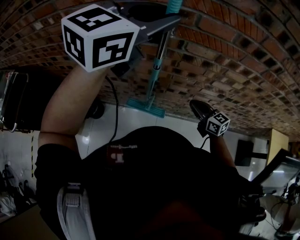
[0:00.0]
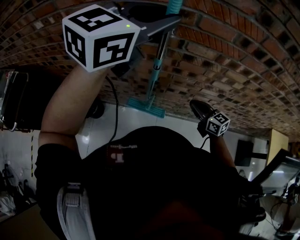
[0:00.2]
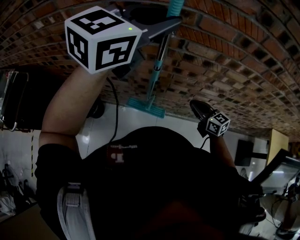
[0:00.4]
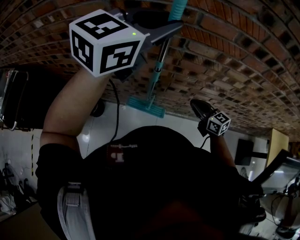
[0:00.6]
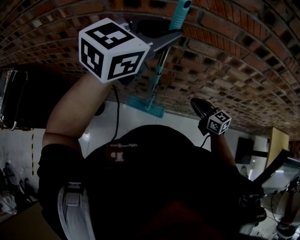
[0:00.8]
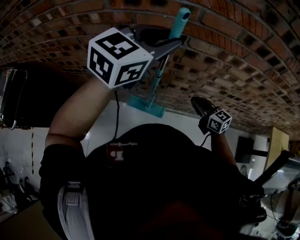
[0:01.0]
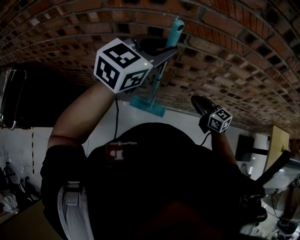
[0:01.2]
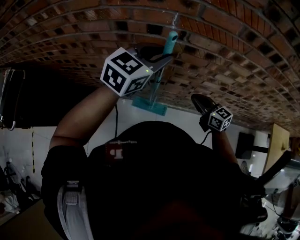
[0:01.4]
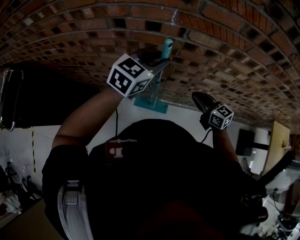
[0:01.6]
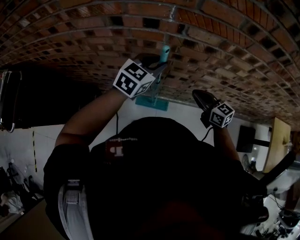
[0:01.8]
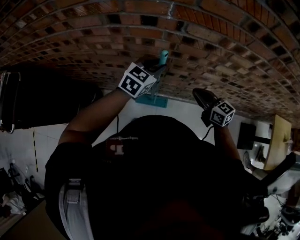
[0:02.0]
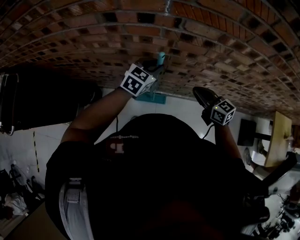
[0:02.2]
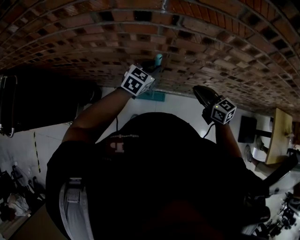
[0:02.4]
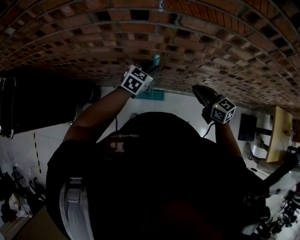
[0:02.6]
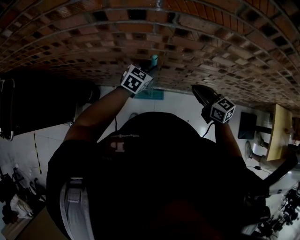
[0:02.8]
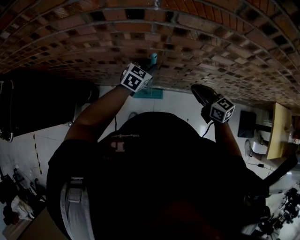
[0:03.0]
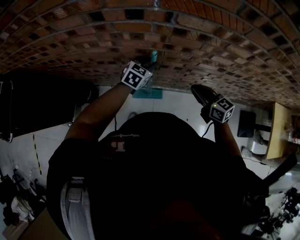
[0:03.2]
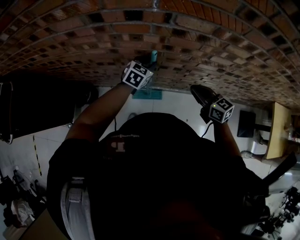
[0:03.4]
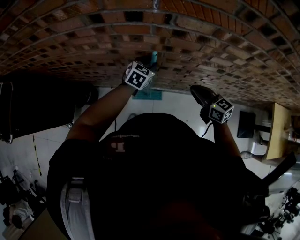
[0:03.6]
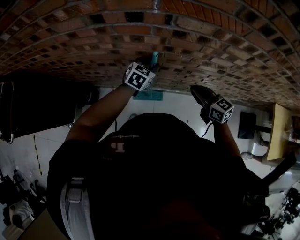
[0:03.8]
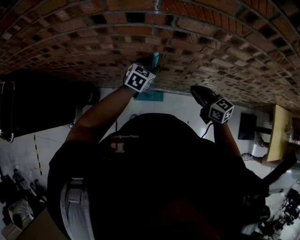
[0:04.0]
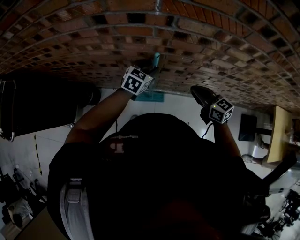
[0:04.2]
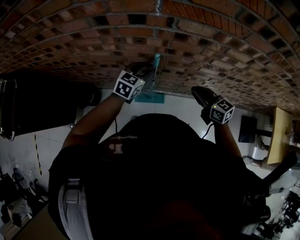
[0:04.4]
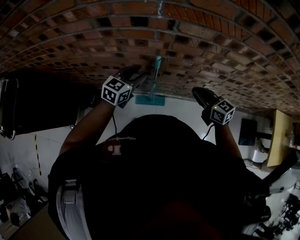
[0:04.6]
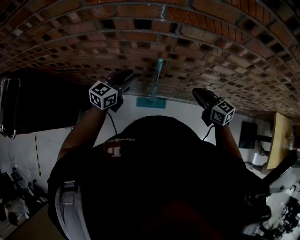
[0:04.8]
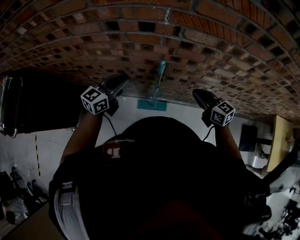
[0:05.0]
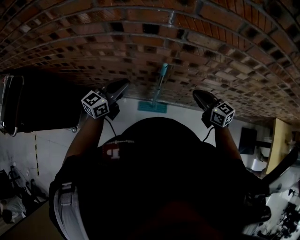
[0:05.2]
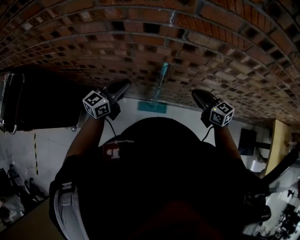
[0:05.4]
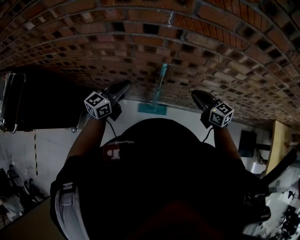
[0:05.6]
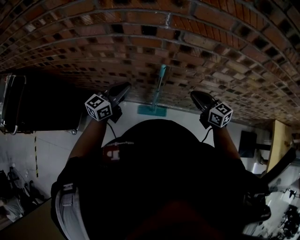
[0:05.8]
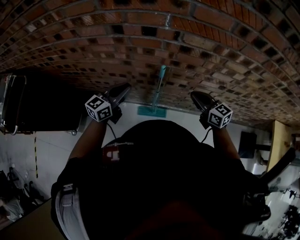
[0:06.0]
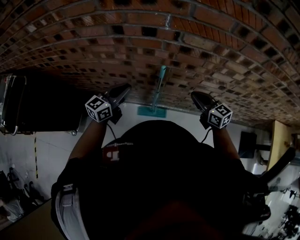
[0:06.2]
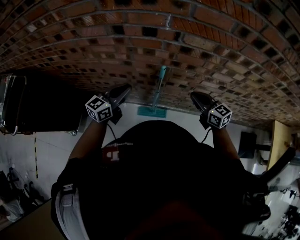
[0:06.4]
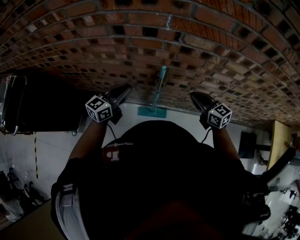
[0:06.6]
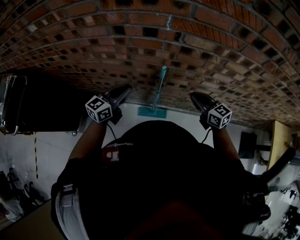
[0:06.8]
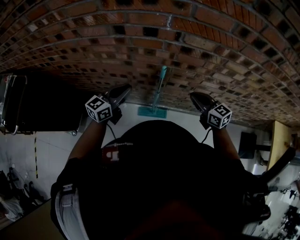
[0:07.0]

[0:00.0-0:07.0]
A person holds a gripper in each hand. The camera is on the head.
0:00.0 to 0:01.4: The left gripper travels downward by approximately 20 cm.
0:01.4 to 0:02.8: The left gripper goes some 30 cm downward.
0:02.8 to 0:04.2: The grippers move only a little.
0:04.2 to 0:05.6: The left gripper travels to the left, upward and backward by about 20 cm, rotates roughly 30 degrees, and closes its fingers.
0:05.6 to 0:07.0: Both grippers stay put.

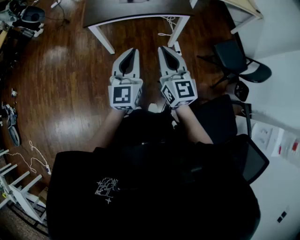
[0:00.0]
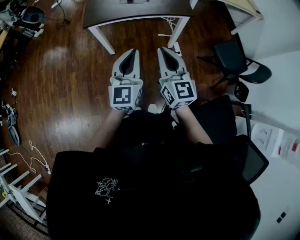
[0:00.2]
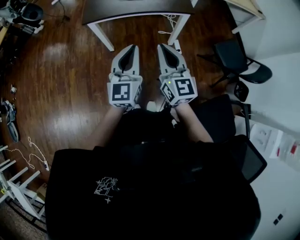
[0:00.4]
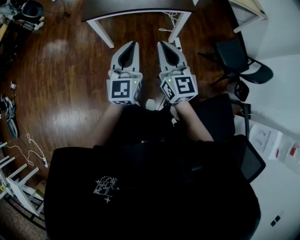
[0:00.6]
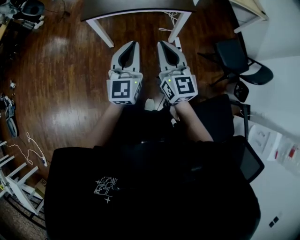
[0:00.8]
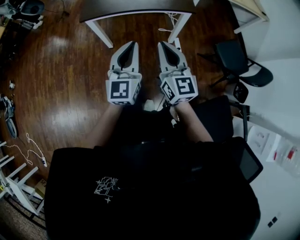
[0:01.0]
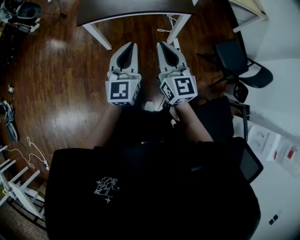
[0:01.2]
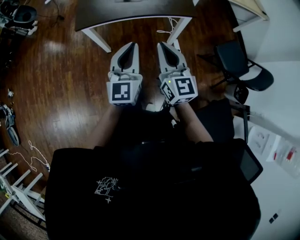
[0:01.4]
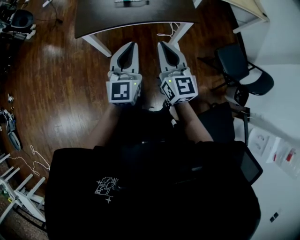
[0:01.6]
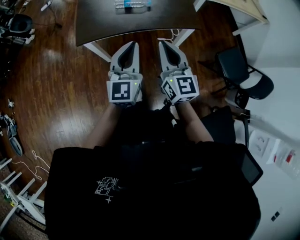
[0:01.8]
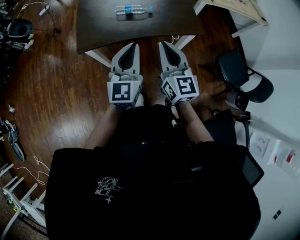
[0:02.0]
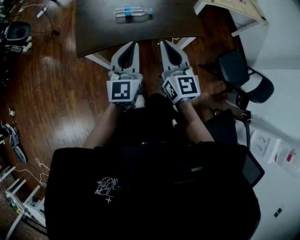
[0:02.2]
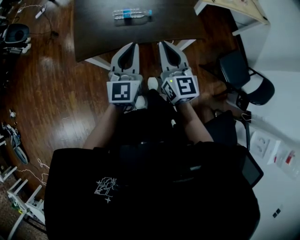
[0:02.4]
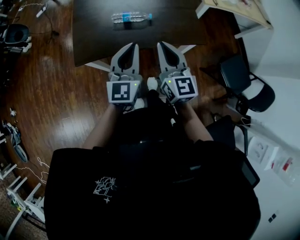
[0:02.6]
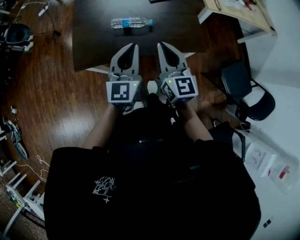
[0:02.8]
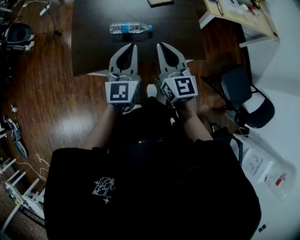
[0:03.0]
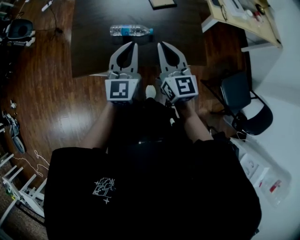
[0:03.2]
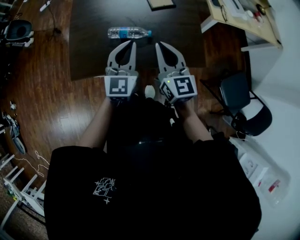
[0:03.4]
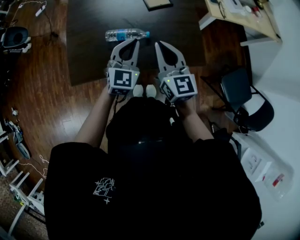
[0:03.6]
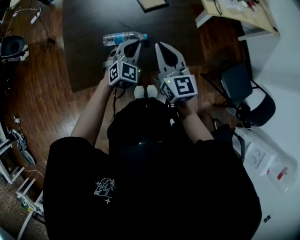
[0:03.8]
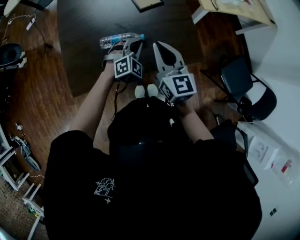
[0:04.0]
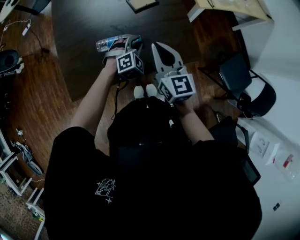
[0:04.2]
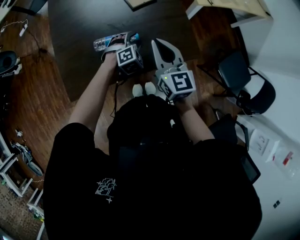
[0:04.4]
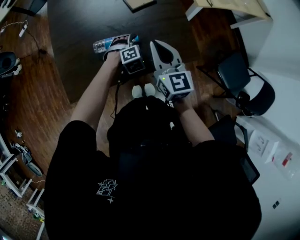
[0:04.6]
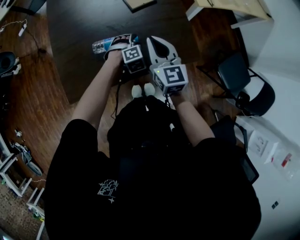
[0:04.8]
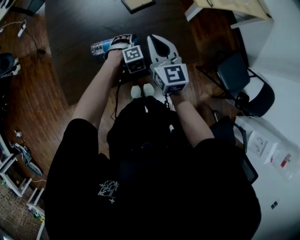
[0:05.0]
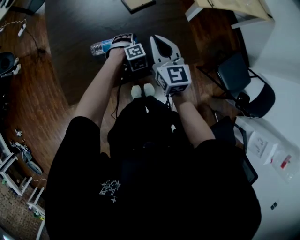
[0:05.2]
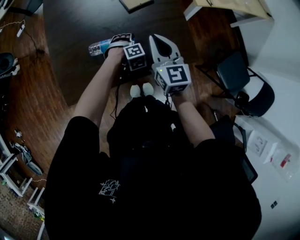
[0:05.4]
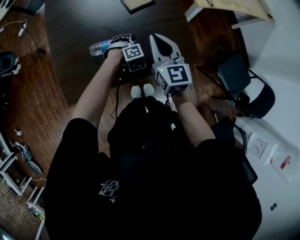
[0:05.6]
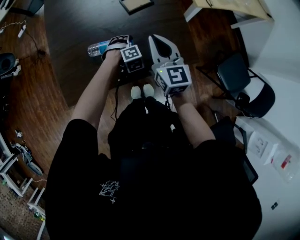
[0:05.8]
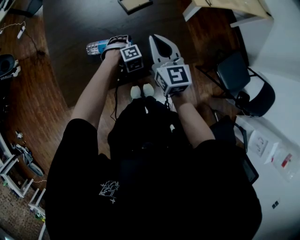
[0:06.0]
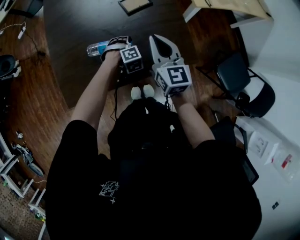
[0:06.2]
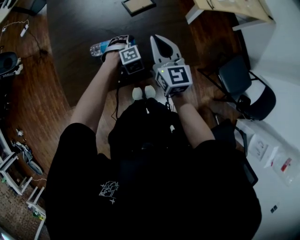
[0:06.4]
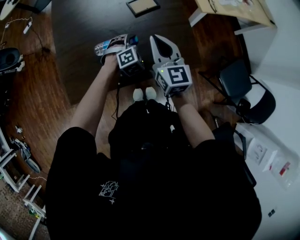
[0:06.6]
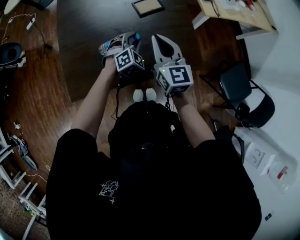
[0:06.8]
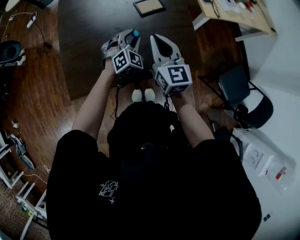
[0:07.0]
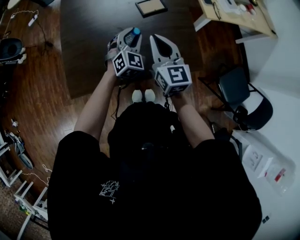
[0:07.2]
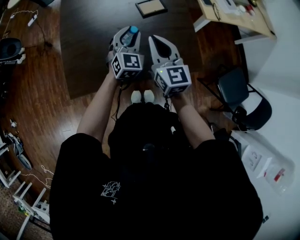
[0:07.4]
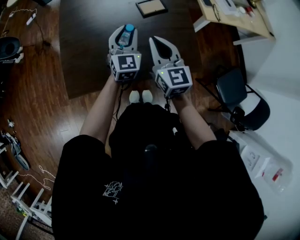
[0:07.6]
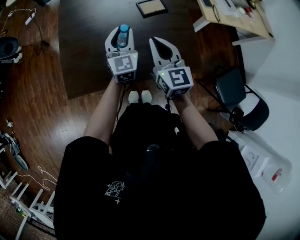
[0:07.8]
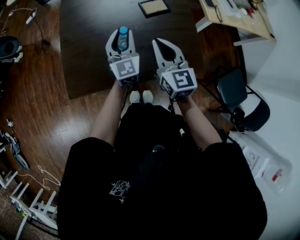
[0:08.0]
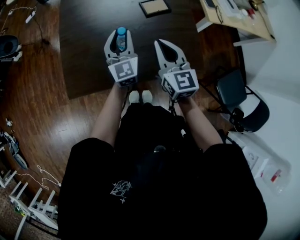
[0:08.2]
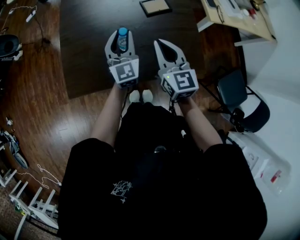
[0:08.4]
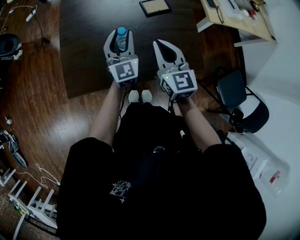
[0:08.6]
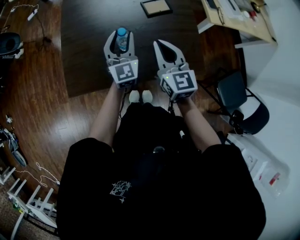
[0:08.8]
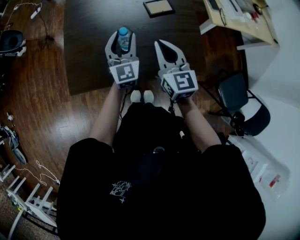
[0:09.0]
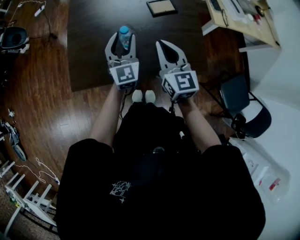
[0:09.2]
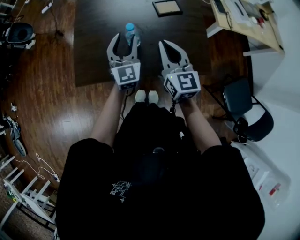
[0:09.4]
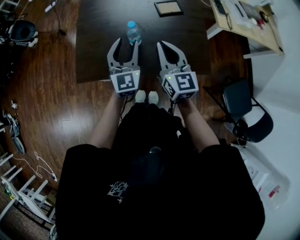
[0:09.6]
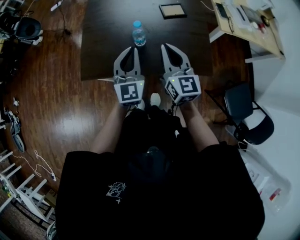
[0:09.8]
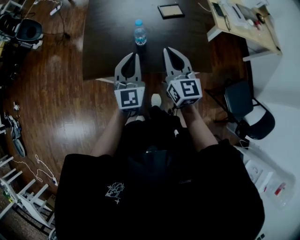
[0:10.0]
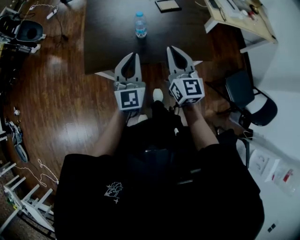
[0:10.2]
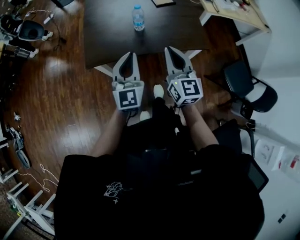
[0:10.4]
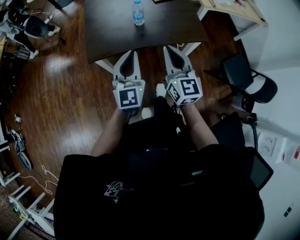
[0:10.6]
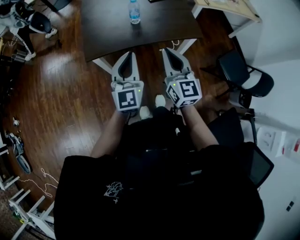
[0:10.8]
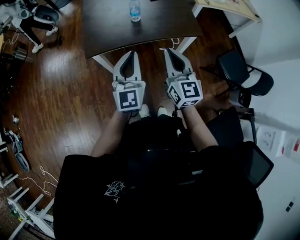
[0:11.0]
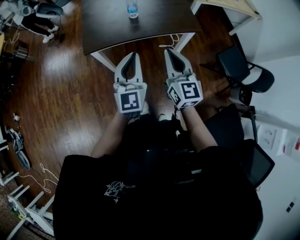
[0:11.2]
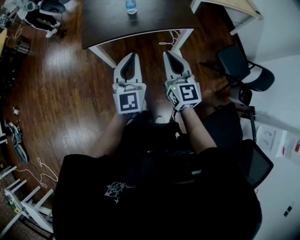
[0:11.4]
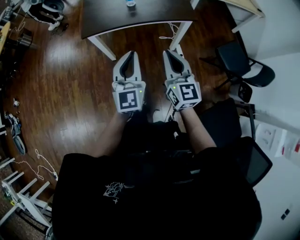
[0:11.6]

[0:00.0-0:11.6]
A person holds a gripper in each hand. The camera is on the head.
0:00.0 to 0:01.4: The grippers both shift forward by approximately 10 cm.
0:01.4 to 0:02.8: The two grippers go about 30 cm forward.
0:02.8 to 0:04.4: The left gripper moves downward and forward, about 30 cm, points its fingers approximately 50 degrees further downward, and opens its fingers, while the right gripper is displaced forward by some 15 cm.
0:04.4 to 0:05.8: The left gripper heads downward, covering about 5 cm; the right gripper moves about 5 cm.
0:05.8 to 0:07.2: The right gripper moves approximately 5 cm, while the left gripper heads upward, covering approximately 15 cm, and points its fingers approximately 40 degrees further upward.
0:07.2 to 0:08.8: The left gripper is displaced to the left by roughly 10 cm, and swivels about 40 degrees.
0:08.8 to 0:10.2: Both grippers travel together backward, roughly 20 cm. The left gripper closes up.
0:10.2 to 0:11.6: The two grippers go about 30 cm backward.

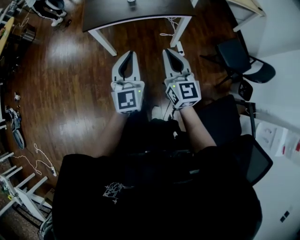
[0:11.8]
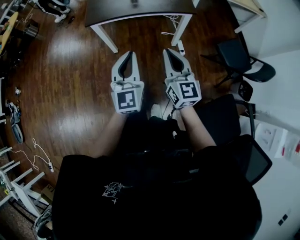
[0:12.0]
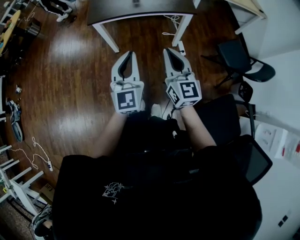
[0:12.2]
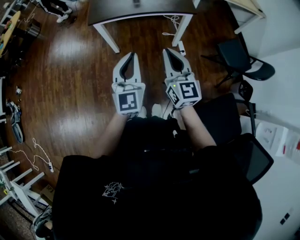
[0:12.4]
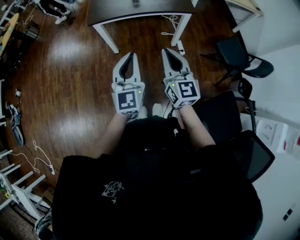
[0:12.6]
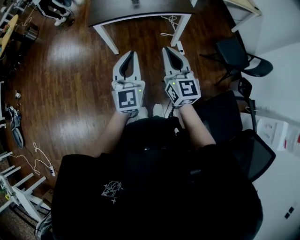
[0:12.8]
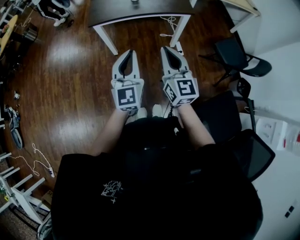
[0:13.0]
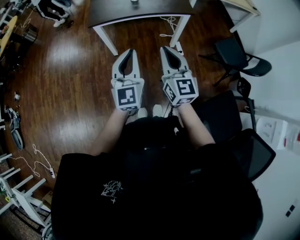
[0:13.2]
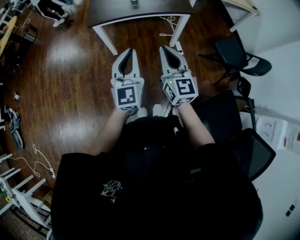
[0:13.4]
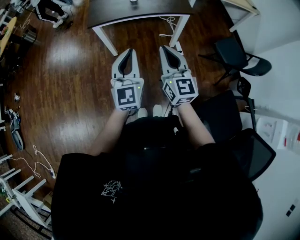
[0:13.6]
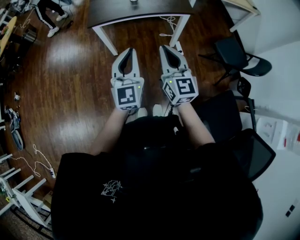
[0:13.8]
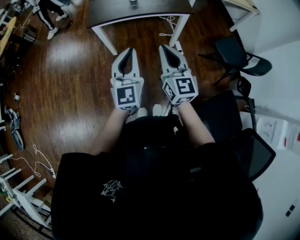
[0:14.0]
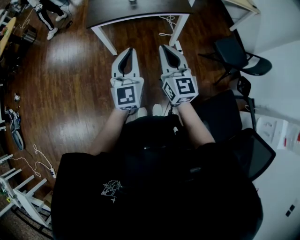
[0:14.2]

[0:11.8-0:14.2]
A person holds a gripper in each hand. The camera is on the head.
0:11.8 to 0:13.0: Both grippers travel together backward, roughly 5 cm.
0:13.0 to 0:14.2: There are only small adjustments of the grippers.

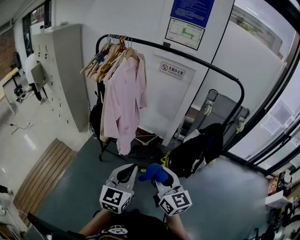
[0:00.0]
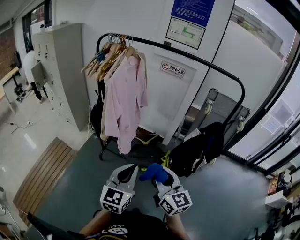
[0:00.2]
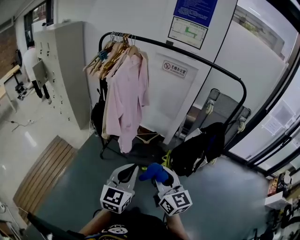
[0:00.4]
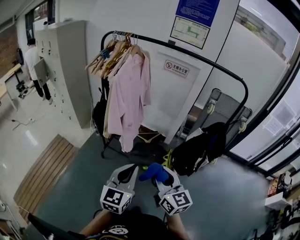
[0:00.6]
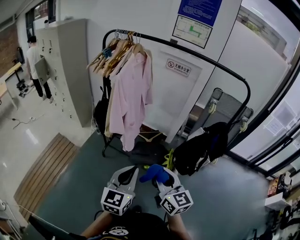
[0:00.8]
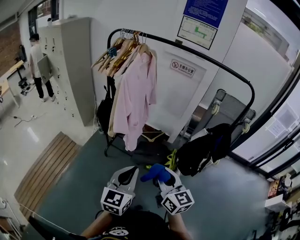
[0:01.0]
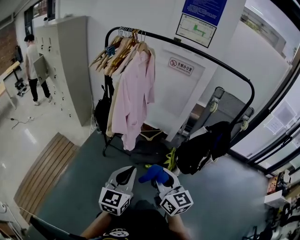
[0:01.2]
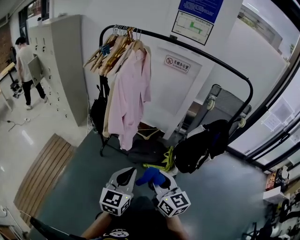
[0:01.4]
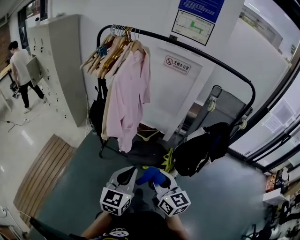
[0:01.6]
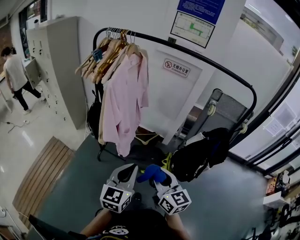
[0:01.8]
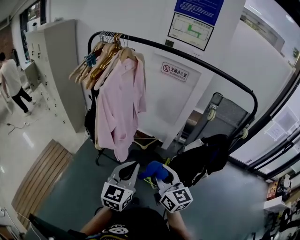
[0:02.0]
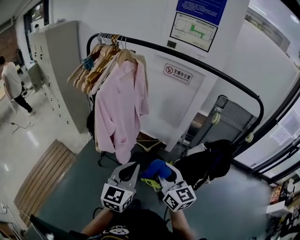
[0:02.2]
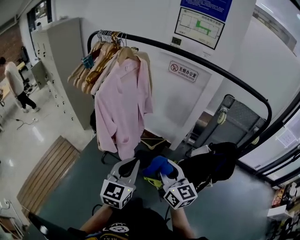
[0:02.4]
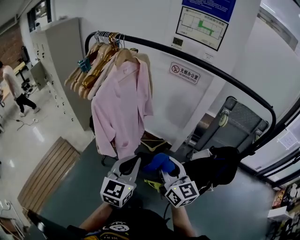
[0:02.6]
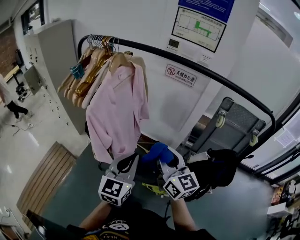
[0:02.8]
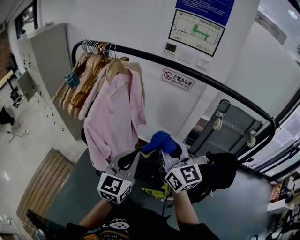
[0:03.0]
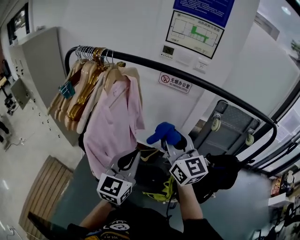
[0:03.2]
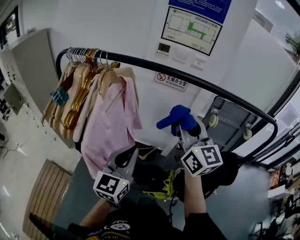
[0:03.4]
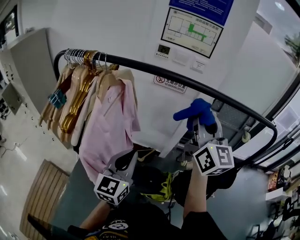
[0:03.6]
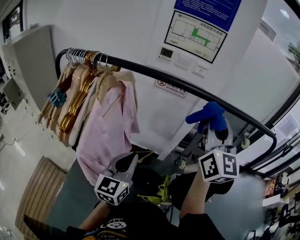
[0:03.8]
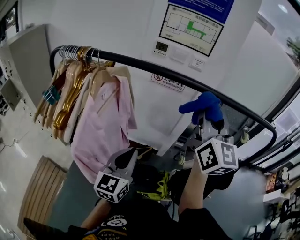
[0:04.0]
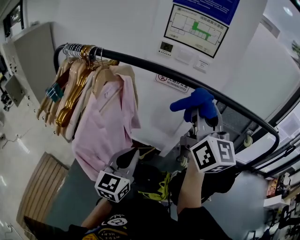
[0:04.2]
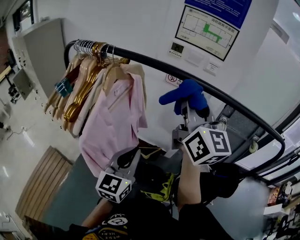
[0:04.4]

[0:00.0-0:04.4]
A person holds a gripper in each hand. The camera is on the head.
0:00.0 to 0:01.4: The grippers both shift to the left by about 5 cm.
0:01.4 to 0:03.0: The two grippers go some 35 cm forward.
0:03.0 to 0:04.4: The left gripper moves forward, about 10 cm. The right gripper travels upward and forward by some 20 cm.
